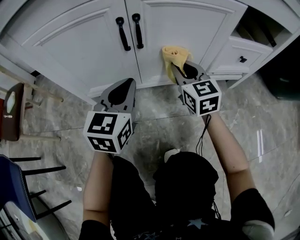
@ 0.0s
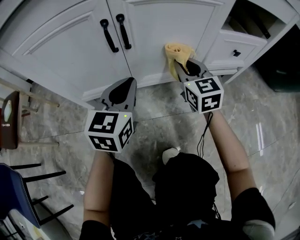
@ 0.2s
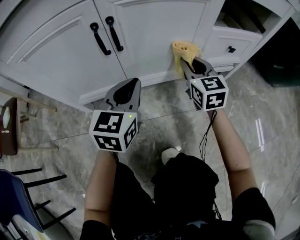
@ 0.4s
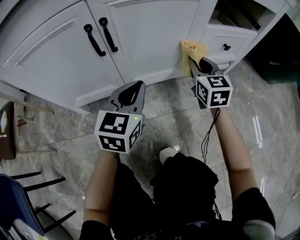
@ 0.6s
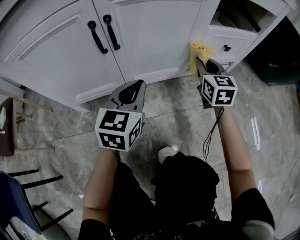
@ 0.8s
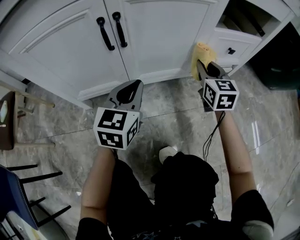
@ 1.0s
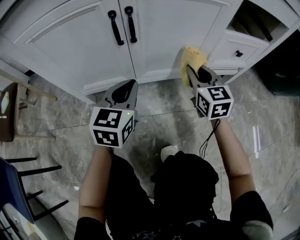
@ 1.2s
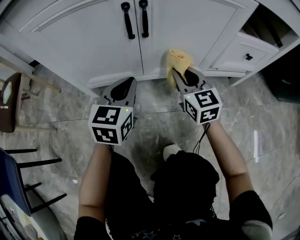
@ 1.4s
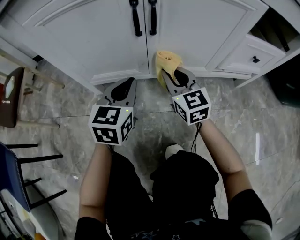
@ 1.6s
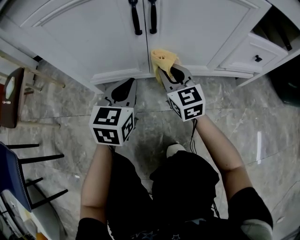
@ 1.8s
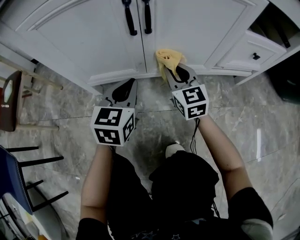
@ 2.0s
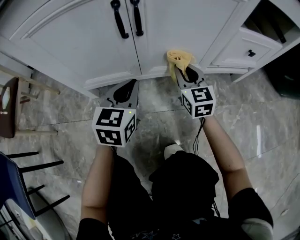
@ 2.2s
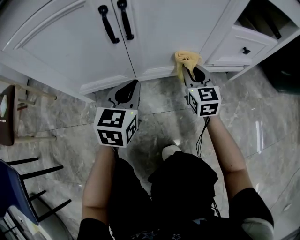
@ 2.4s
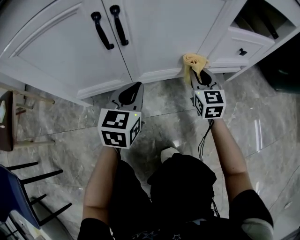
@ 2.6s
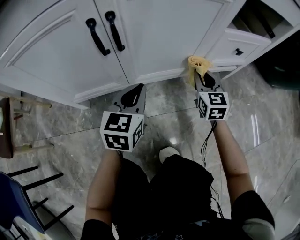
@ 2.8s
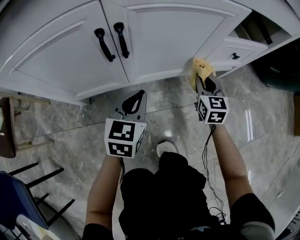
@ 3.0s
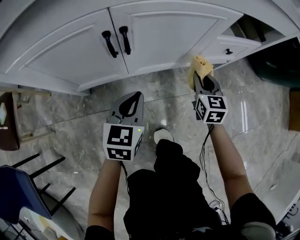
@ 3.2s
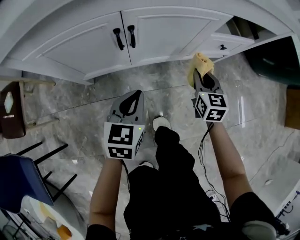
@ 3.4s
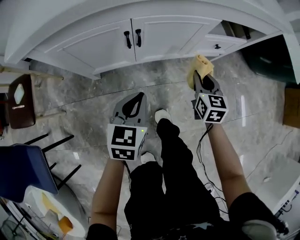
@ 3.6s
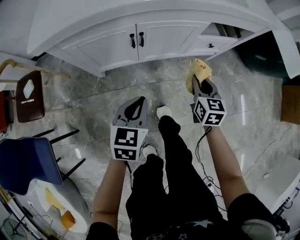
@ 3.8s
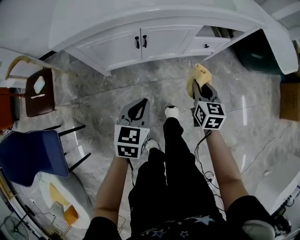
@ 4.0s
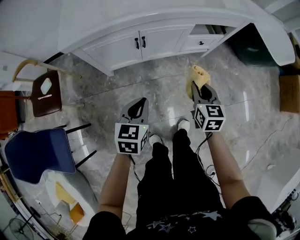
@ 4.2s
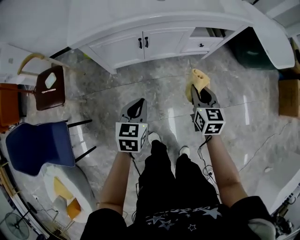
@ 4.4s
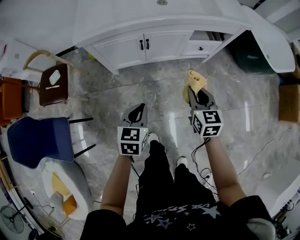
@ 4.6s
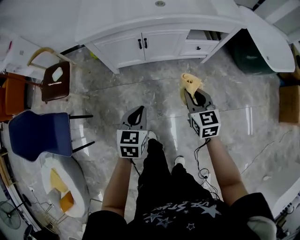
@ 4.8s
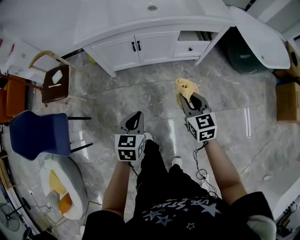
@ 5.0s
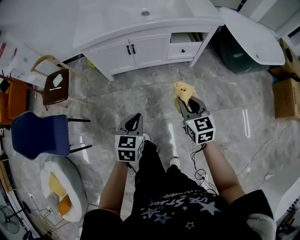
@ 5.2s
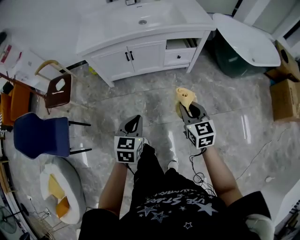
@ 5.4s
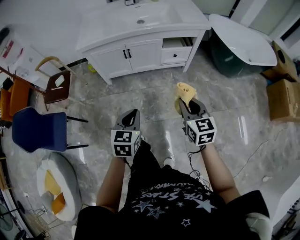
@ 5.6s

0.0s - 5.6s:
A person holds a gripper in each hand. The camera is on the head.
0.0s - 1.4s: The right gripper reaches roughly 15 cm to the right, then returns, while the left gripper is displaced downward by about 5 cm, and reaches approximately 10 cm to the right, then returns.
1.4s - 2.8s: The right gripper heads to the right, covering about 15 cm, and changes its angle by roughly 20 degrees; the left gripper heads to the right, covering some 10 cm.
2.8s - 4.2s: Both grippers travel together upward and backward, some 50 cm.
4.2s - 5.6s: The grippers both shift backward, upward and to the right by roughly 35 cm.

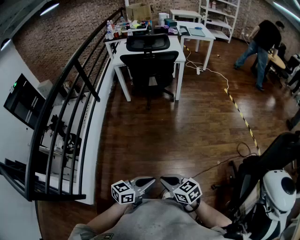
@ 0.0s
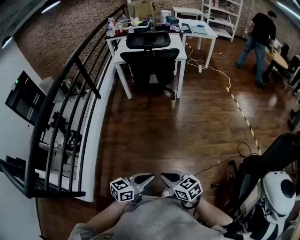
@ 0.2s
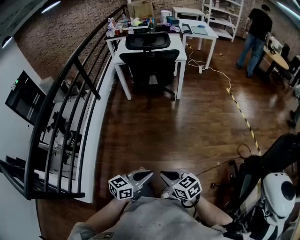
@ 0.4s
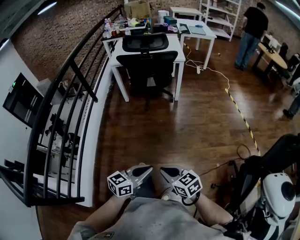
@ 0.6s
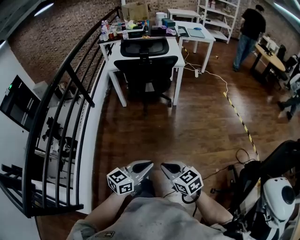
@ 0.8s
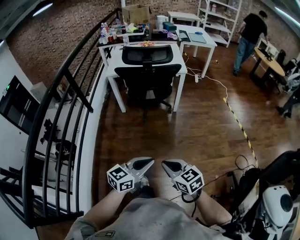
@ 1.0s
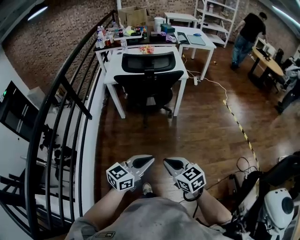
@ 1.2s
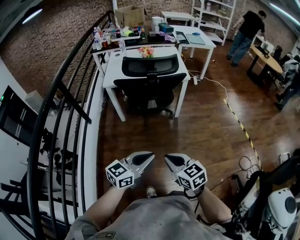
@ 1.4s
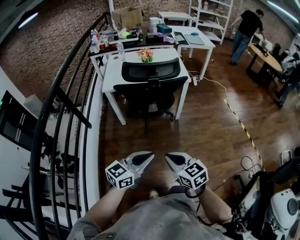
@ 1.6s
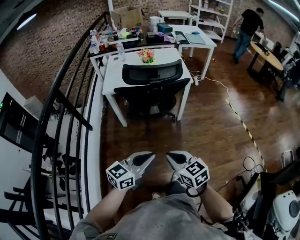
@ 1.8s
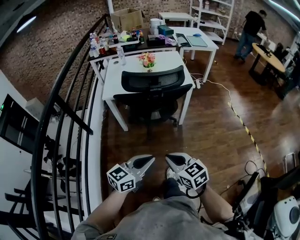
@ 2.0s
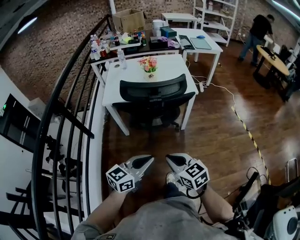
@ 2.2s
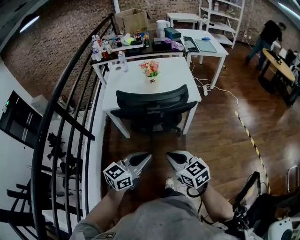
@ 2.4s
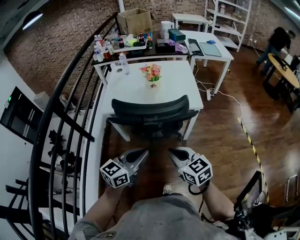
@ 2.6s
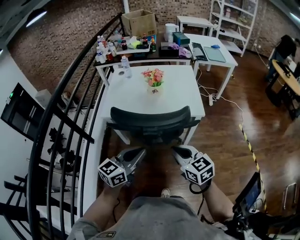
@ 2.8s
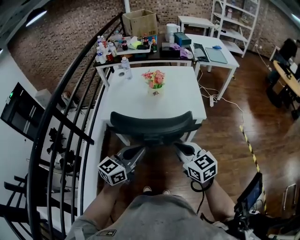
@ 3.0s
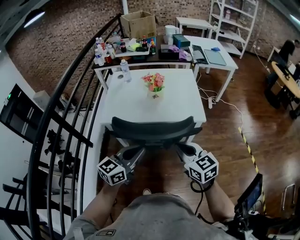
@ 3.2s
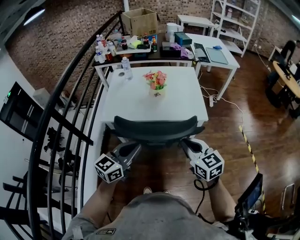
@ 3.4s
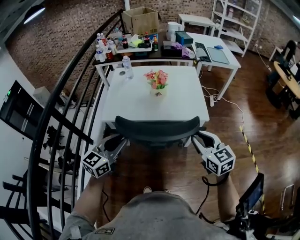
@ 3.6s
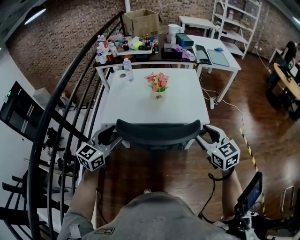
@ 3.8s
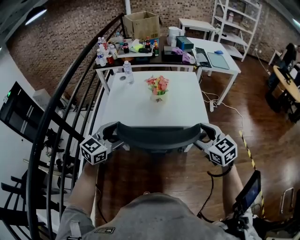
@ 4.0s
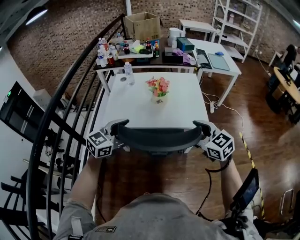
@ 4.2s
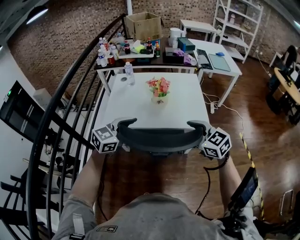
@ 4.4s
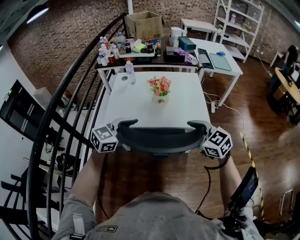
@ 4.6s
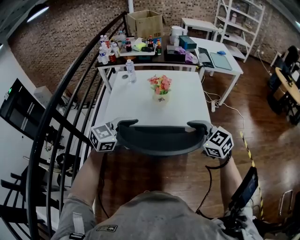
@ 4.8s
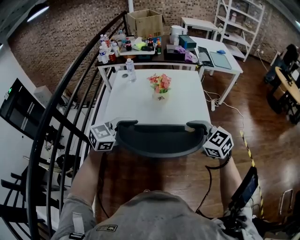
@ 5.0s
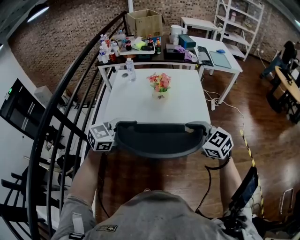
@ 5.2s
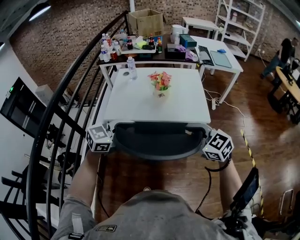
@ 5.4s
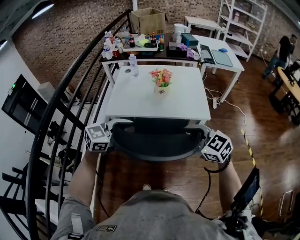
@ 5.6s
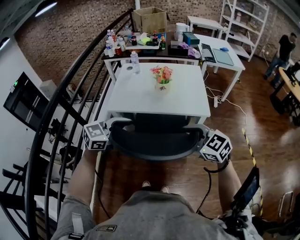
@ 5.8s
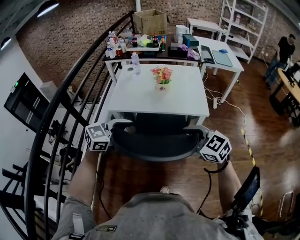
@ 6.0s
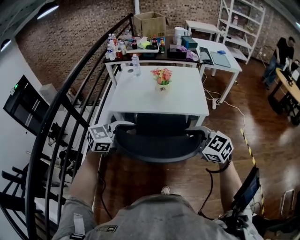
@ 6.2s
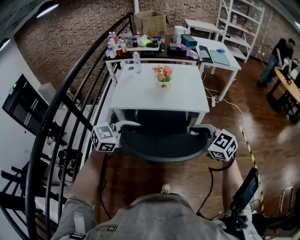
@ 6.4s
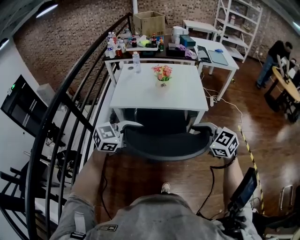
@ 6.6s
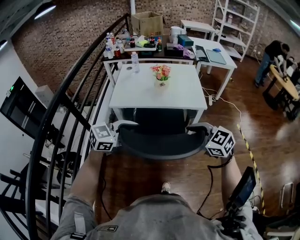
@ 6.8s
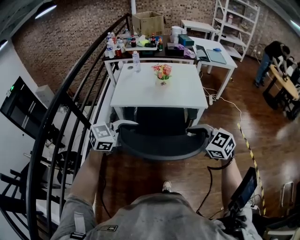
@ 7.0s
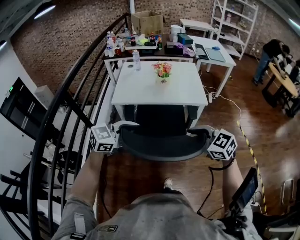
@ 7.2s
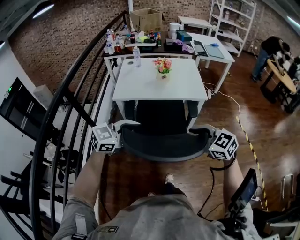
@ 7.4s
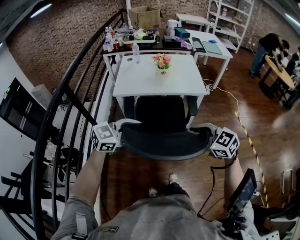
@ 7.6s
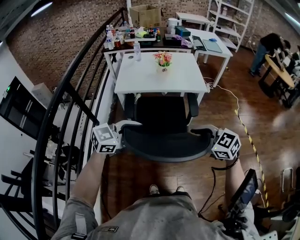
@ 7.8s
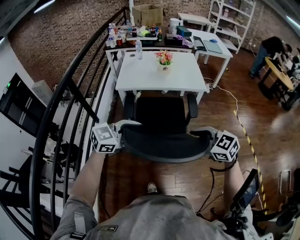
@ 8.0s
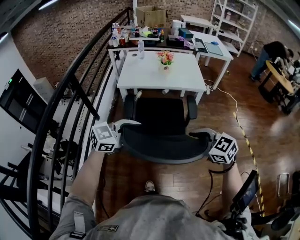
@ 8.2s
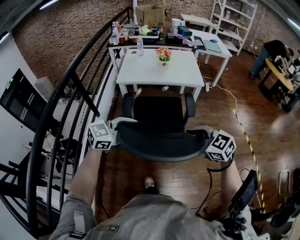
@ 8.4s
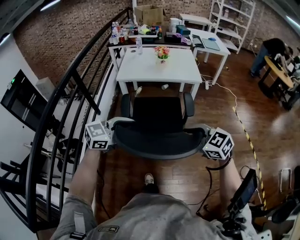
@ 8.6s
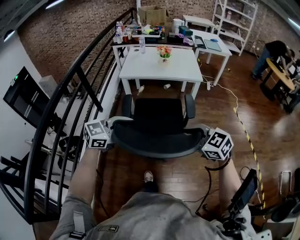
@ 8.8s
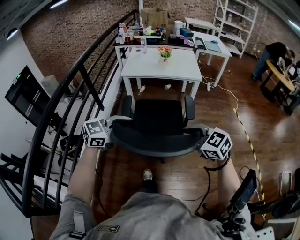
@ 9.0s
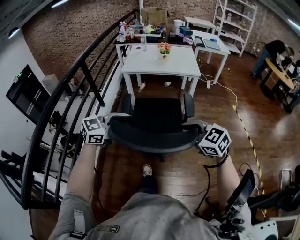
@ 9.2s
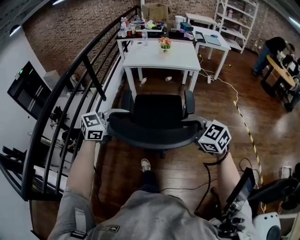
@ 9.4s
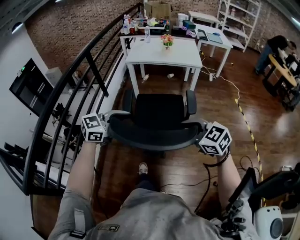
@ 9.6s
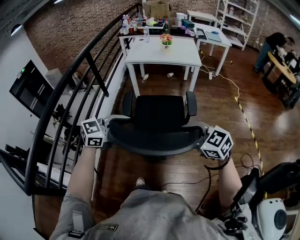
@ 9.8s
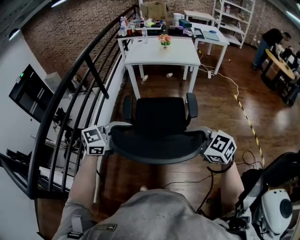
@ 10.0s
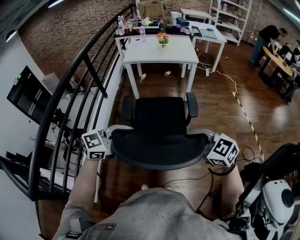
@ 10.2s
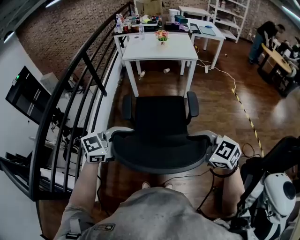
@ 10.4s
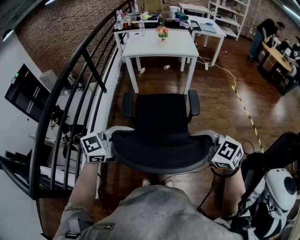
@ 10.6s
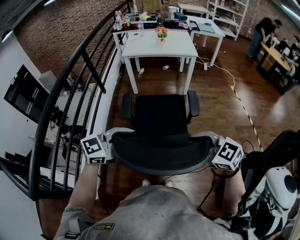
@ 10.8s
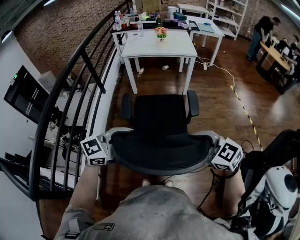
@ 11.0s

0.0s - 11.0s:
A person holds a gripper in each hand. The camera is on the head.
0.0s - 1.6s: The two grippers travel together, forward, roughly 40 cm.
1.6s - 3.2s: Both grippers travel together forward, roughly 35 cm.
3.2s - 4.8s: The two grippers go some 10 cm forward. The right gripper rotates approximately 20 degrees, and opens. The left gripper turns by about 30 degrees, and opens up.
4.8s - 6.2s: Both grippers travel together backward, roughly 15 cm.
6.2s - 7.8s: The right gripper shifts by roughly 20 cm. Meanwhile the left gripper changes place by about 20 cm.
7.8s - 9.4s: The right gripper moves roughly 30 cm, while the left gripper ends up about 30 cm from where it was.
9.4s - 11.0s: The left gripper moves roughly 15 cm. The right gripper changes place by some 15 cm.

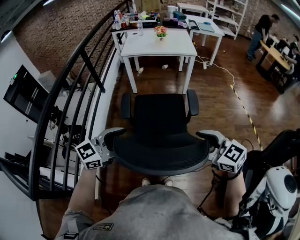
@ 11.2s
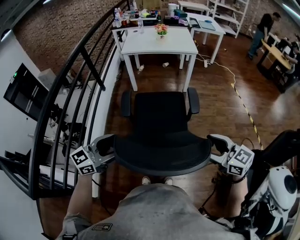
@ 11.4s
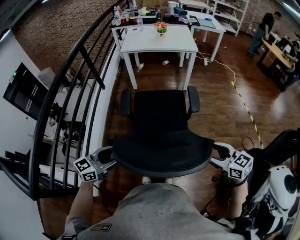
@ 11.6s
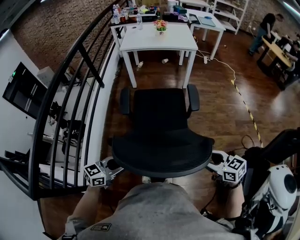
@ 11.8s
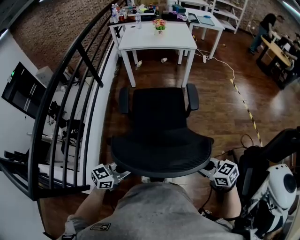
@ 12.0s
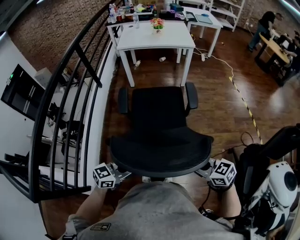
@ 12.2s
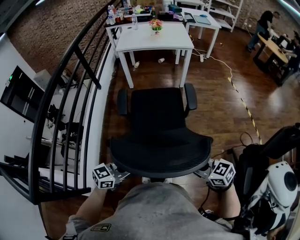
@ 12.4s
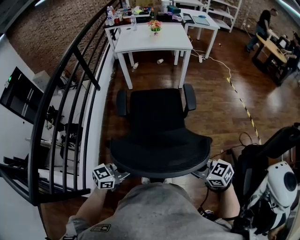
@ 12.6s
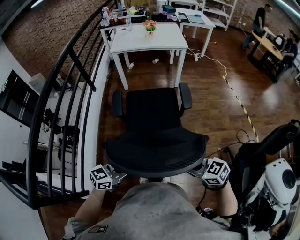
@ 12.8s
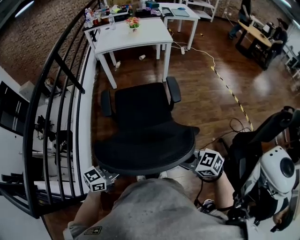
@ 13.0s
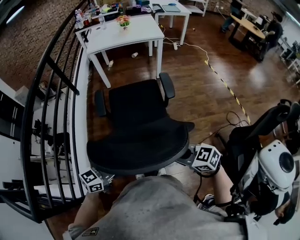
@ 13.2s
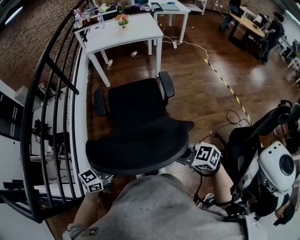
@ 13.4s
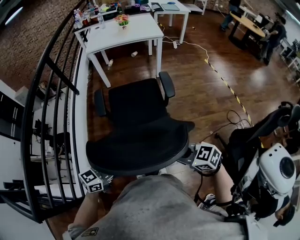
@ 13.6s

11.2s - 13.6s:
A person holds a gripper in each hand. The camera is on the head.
11.2s - 12.4s: The grippers both shift downward by approximately 15 cm. The left gripper rotates some 20 degrees, and closes up, while the right gripper changes its angle by roughly 20 degrees, and closes up.
12.4s - 13.6s: The grippers stay close to where they were, moving slightly.

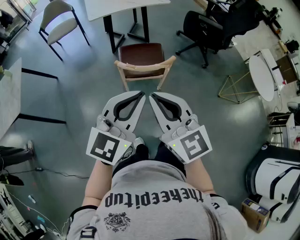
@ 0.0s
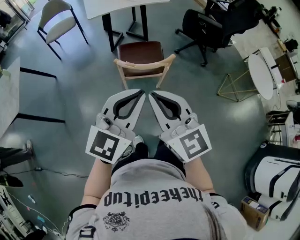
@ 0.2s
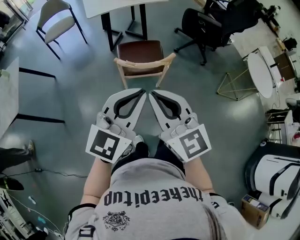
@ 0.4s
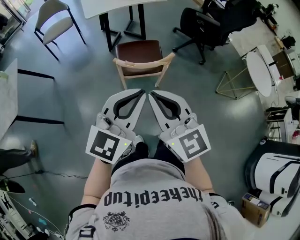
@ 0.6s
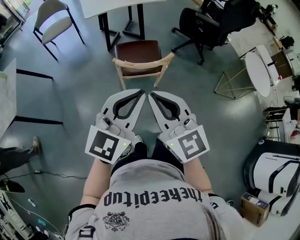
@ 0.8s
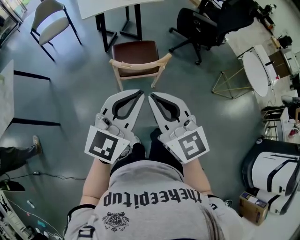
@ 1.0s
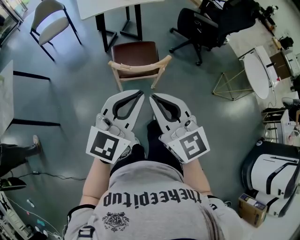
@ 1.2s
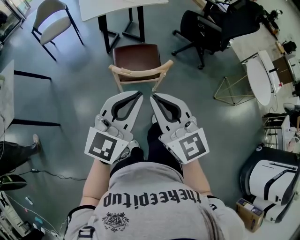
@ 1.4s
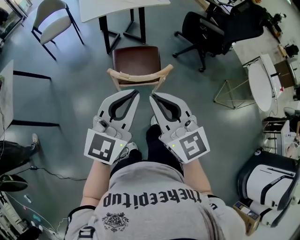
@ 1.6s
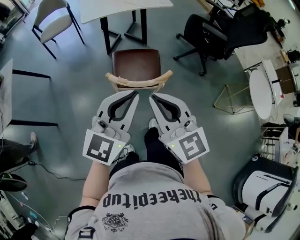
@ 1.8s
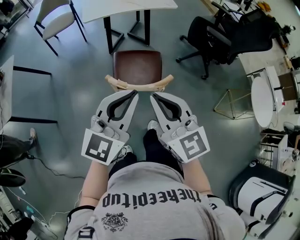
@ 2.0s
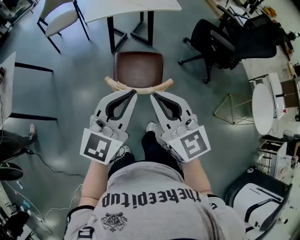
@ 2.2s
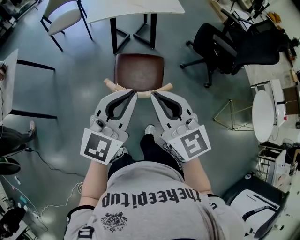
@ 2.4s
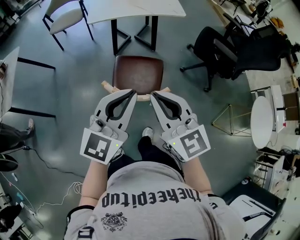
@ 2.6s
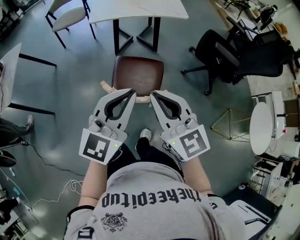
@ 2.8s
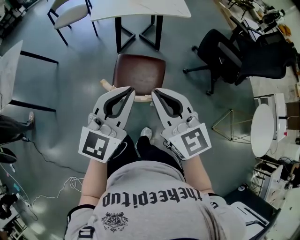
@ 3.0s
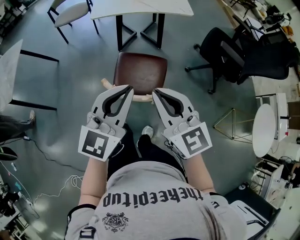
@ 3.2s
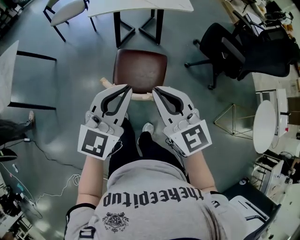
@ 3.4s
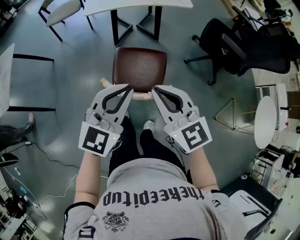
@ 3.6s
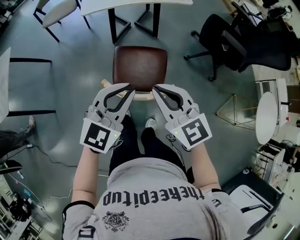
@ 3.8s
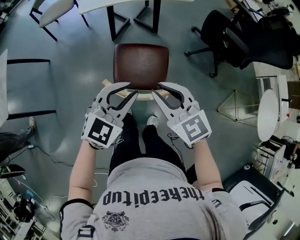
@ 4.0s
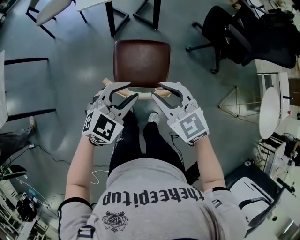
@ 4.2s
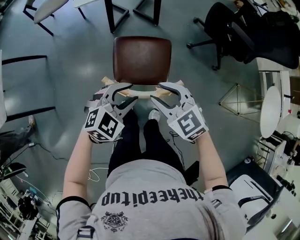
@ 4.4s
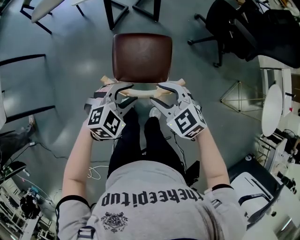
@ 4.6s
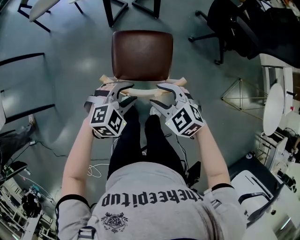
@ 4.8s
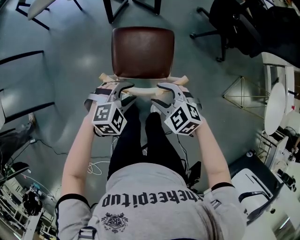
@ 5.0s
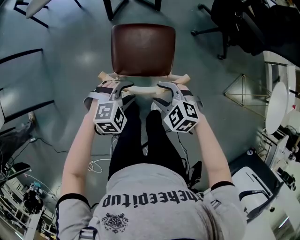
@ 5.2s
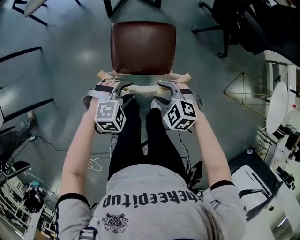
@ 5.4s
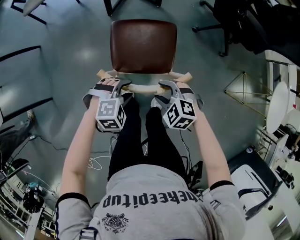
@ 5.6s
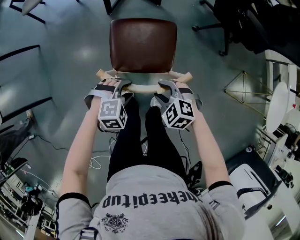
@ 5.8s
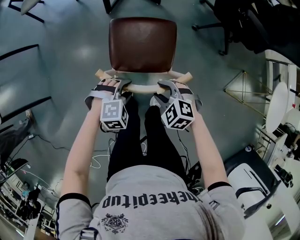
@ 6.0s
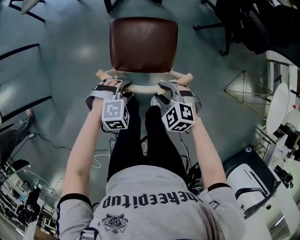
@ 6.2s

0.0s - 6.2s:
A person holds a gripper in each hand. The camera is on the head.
0.0s - 1.6s: The two grippers go some 10 cm forward.
1.6s - 3.2s: Both grippers move forward and to the right, some 15 cm.
3.2s - 4.6s: Both grippers move downward, roughly 20 cm. The left gripper tilts its fingers roughly 40 degrees downward, and opens up, while the right gripper tips its fingers downward by about 30 degrees, and opens up.
4.6s - 6.2s: The two grippers go roughly 15 cm downward. The left gripper rotates some 20 degrees. The right gripper turns by roughly 20 degrees.
